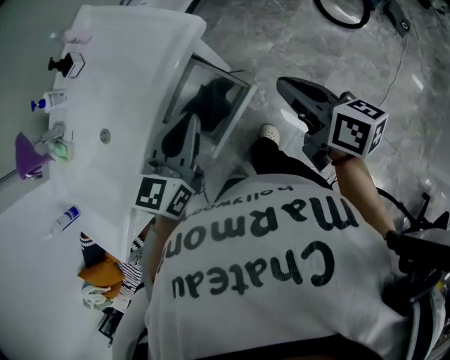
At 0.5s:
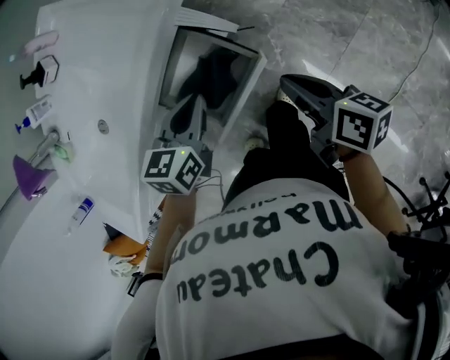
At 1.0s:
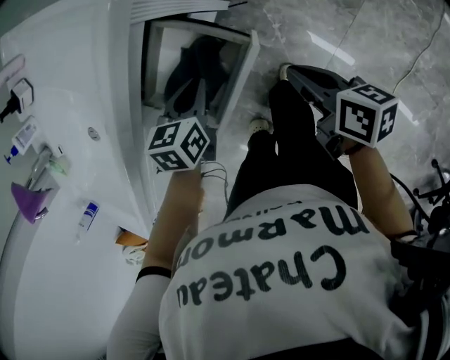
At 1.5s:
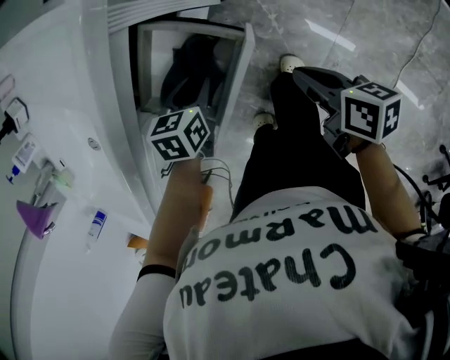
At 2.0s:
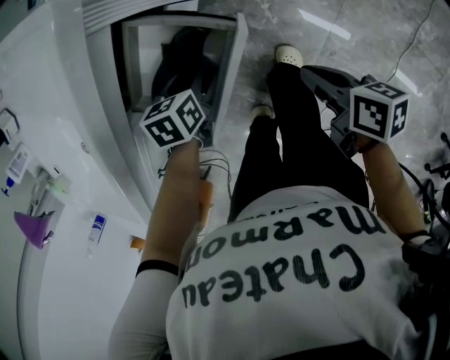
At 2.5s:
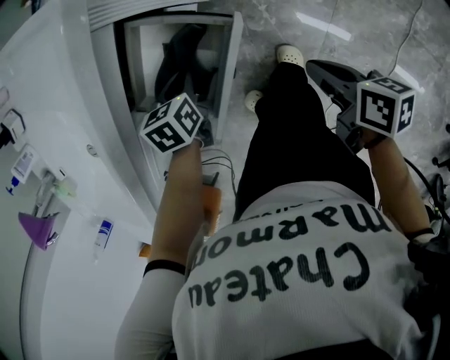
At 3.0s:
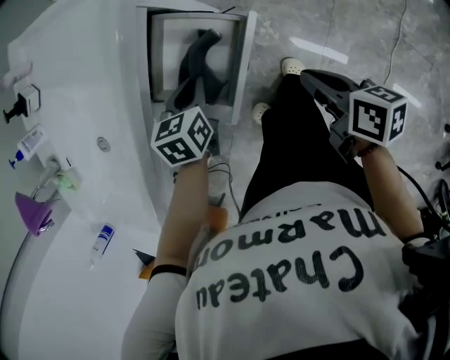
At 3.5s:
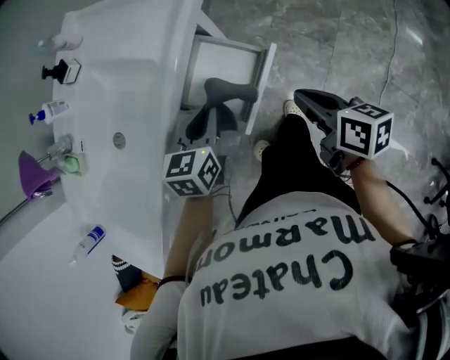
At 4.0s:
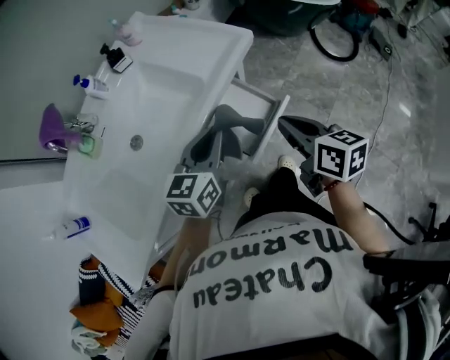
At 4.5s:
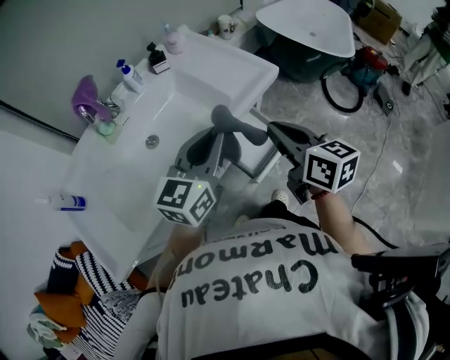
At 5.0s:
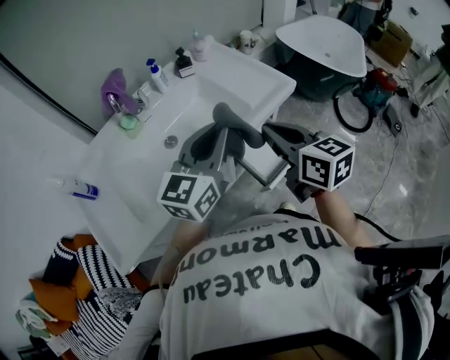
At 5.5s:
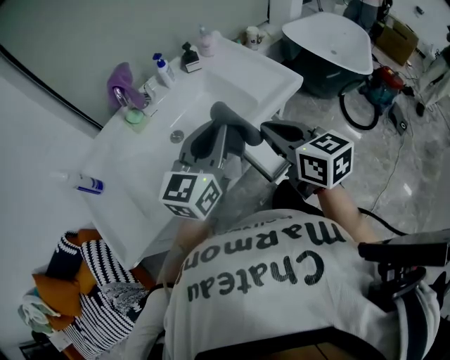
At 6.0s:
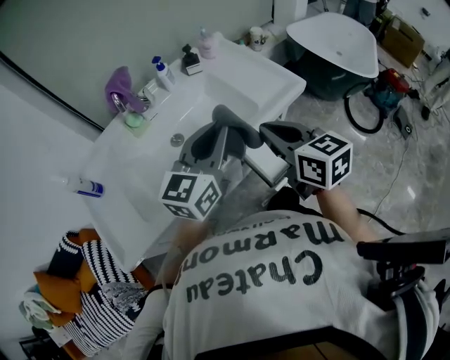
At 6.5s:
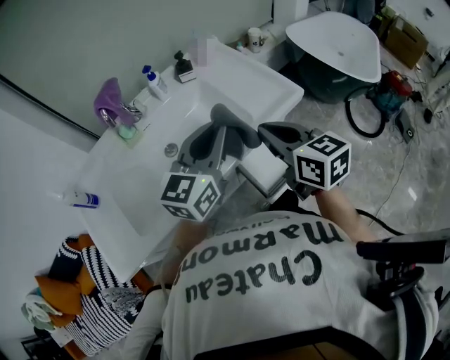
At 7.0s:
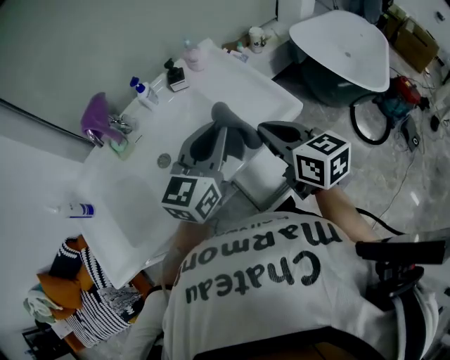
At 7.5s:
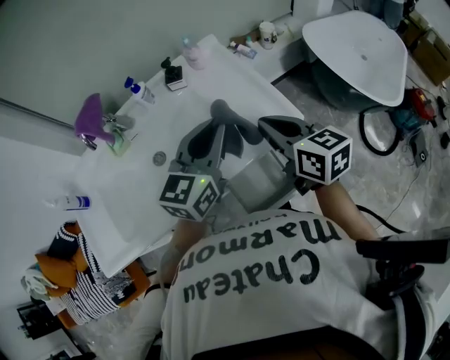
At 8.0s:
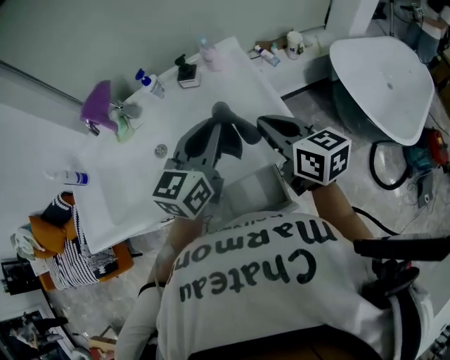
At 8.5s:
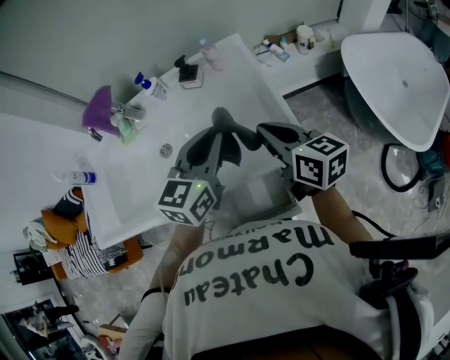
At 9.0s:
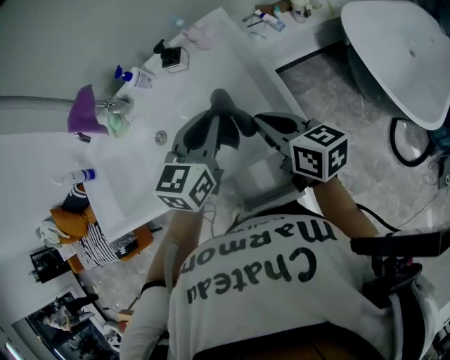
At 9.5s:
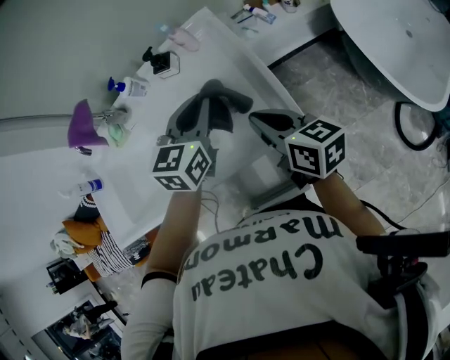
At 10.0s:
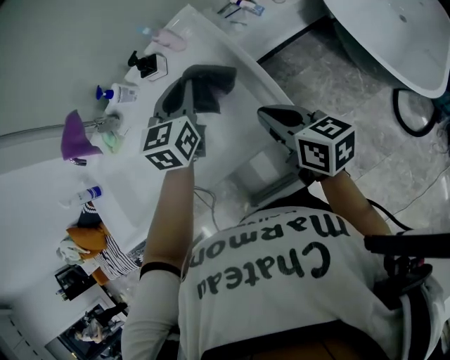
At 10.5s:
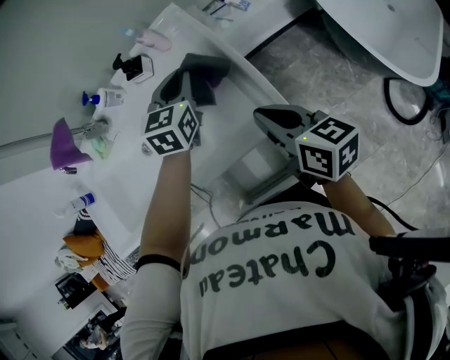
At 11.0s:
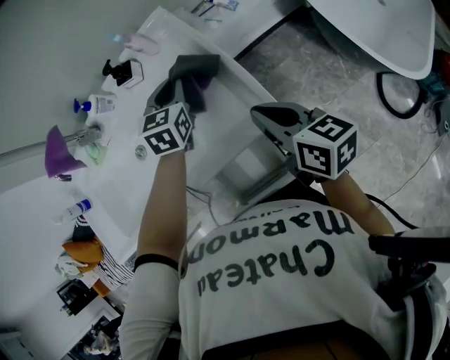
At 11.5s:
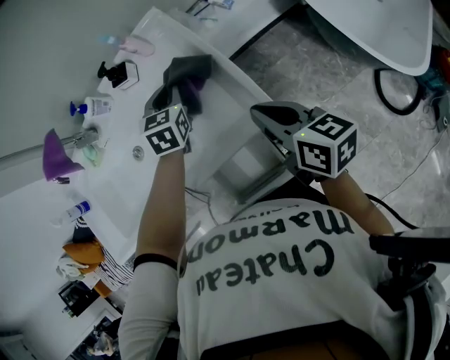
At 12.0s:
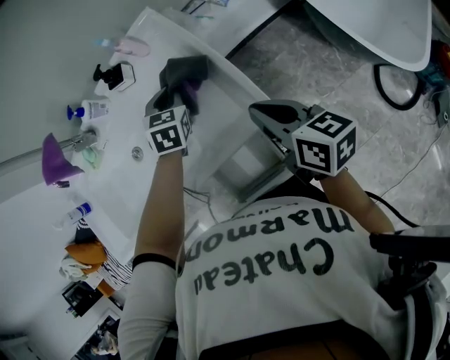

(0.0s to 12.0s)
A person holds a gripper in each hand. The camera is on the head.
0.0s - 2.0s: The two grippers go some 30 cm downward. The left gripper tips its fingers downward by roughly 50 degrees, and opens up; the right gripper turns by roughly 30 degrees.
2.0s - 4.0s: The right gripper is displaced upward and to the left by roughly 35 cm, and swivels approximately 40 degrees. The left gripper shifts roughly 35 cm upward, and angles its fingers upward, by roughly 50 degrees.
4.0s - 6.0s: The right gripper heads to the left and upward, covering approximately 20 cm, and rotates about 30 degrees. Meanwhile the left gripper is displaced upward and to the left by about 20 cm, and swivels roughly 20 degrees.
6.0s - 8.0s: Both grippers move forward and to the right, some 25 cm. The left gripper swivels some 20 degrees; the right gripper turns by about 20 degrees.
8.0s - 10.0s: The right gripper heads downward and to the right, covering about 10 cm; the left gripper goes approximately 15 cm forward, downward and to the right, and changes its angle by approximately 20 degrees.
10.0s - 12.0s: The left gripper is displaced downward by some 10 cm, and turns by some 20 degrees.

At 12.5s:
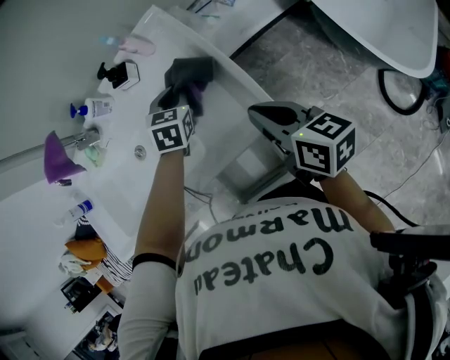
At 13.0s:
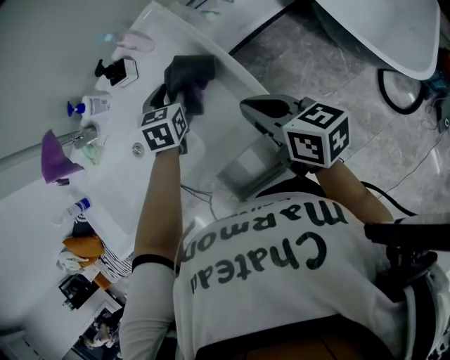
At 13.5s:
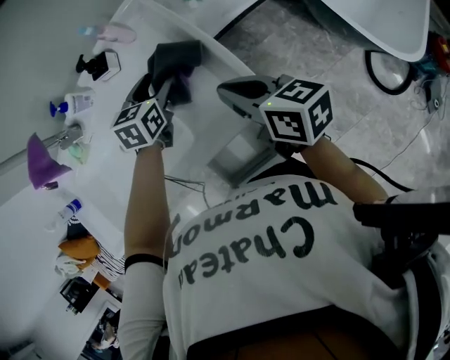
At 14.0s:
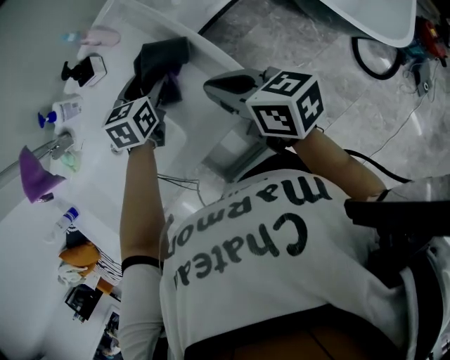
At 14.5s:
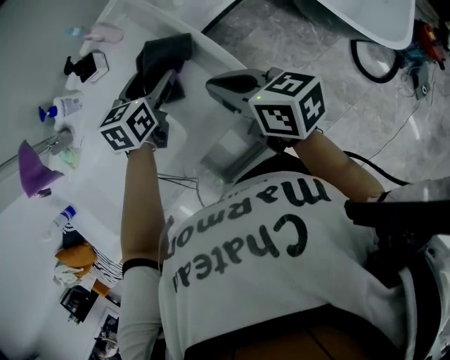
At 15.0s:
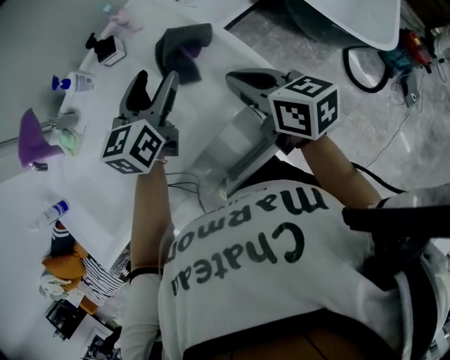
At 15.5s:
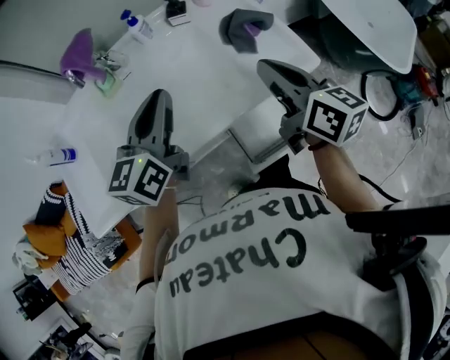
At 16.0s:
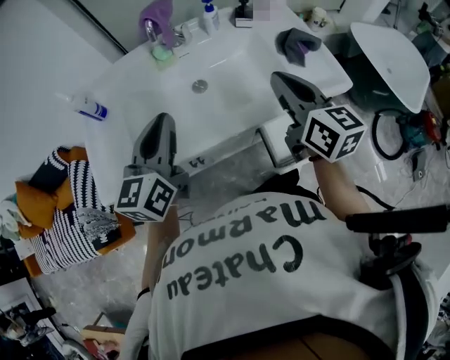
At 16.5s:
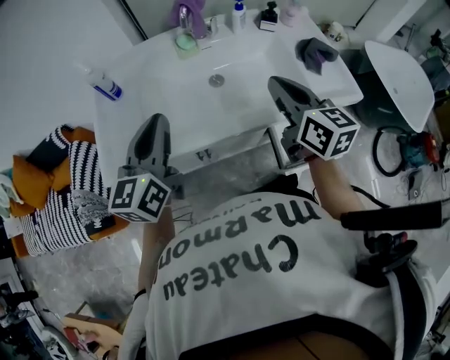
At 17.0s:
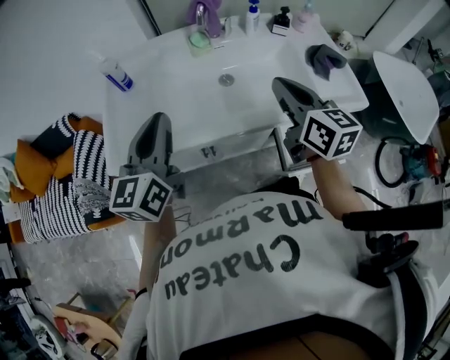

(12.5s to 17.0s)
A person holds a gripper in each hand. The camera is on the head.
12.5s - 14.5s: The left gripper swivels approximately 30 degrees, and opens up. Meanwhile the right gripper moves approximately 5 cm.
14.5s - 17.0s: The left gripper travels to the left and backward by about 60 cm, angles its fingers upward, by roughly 40 degrees, and closes its fingers, while the right gripper is displaced to the left by approximately 35 cm, and rotates about 30 degrees.

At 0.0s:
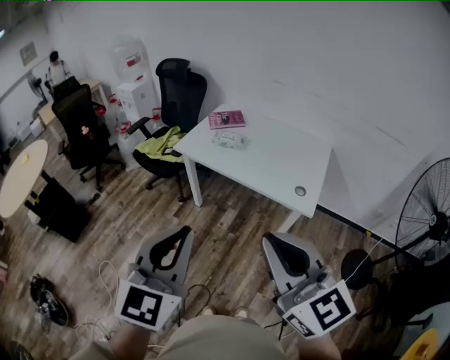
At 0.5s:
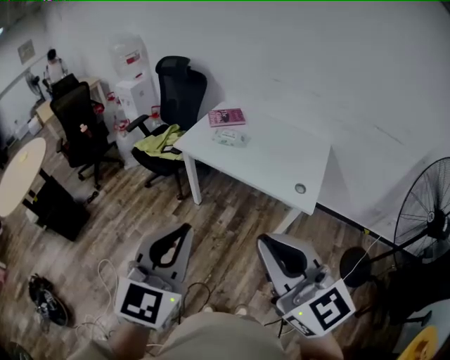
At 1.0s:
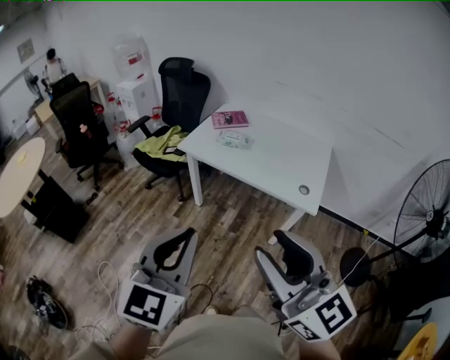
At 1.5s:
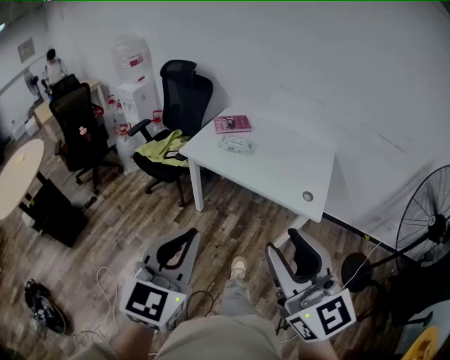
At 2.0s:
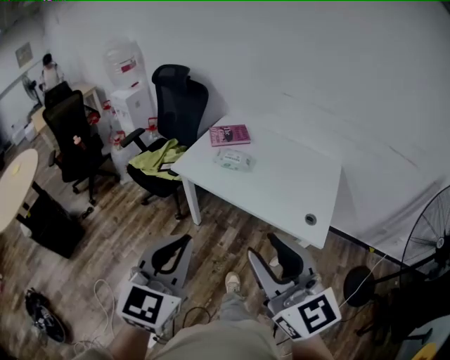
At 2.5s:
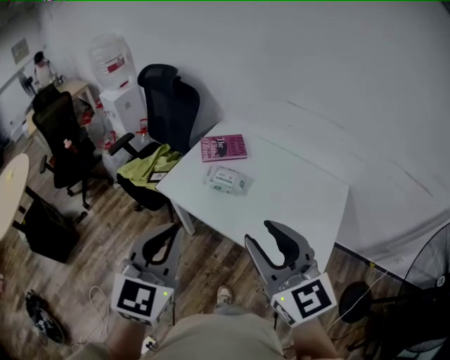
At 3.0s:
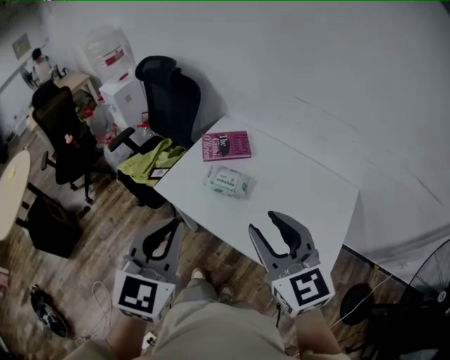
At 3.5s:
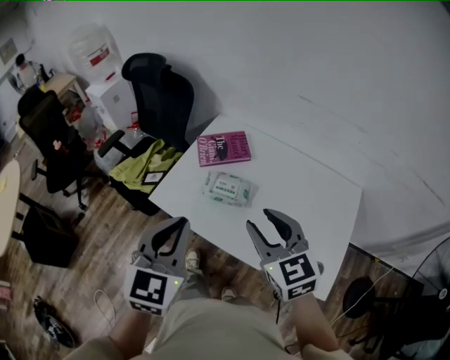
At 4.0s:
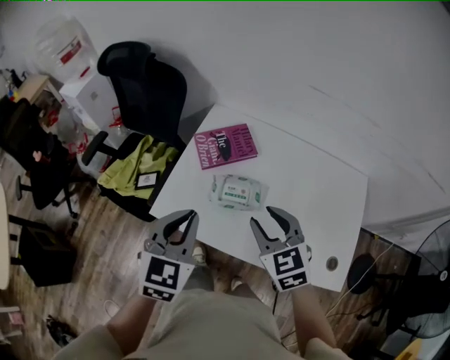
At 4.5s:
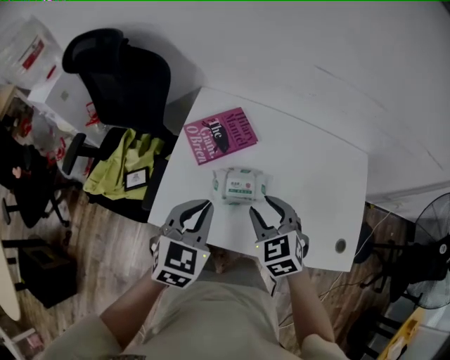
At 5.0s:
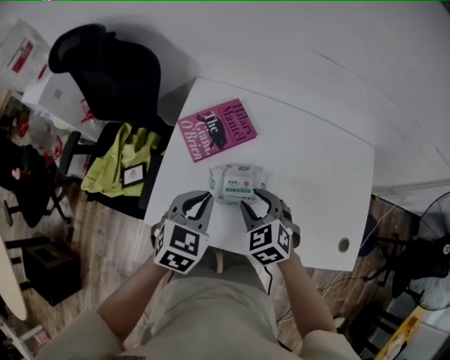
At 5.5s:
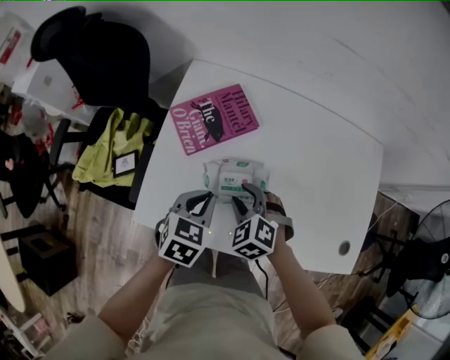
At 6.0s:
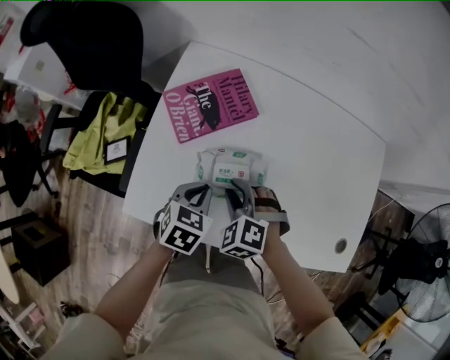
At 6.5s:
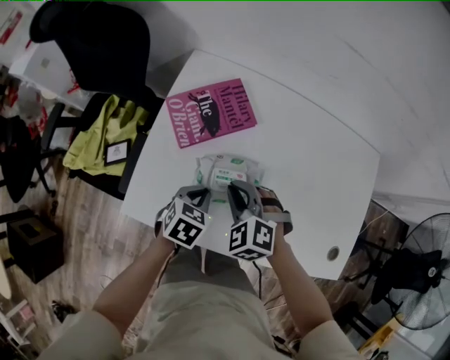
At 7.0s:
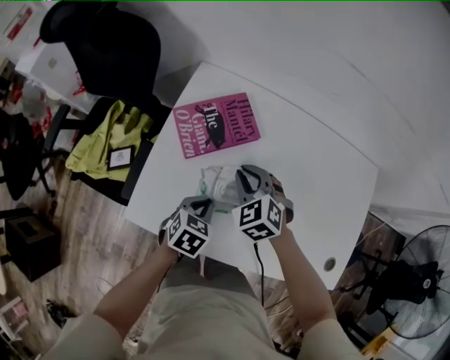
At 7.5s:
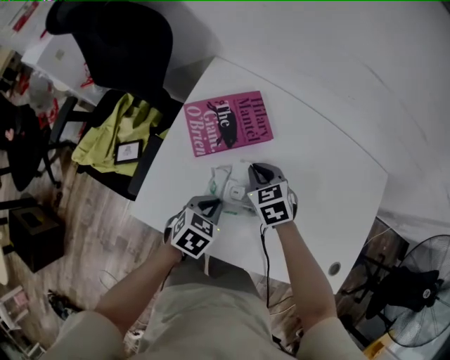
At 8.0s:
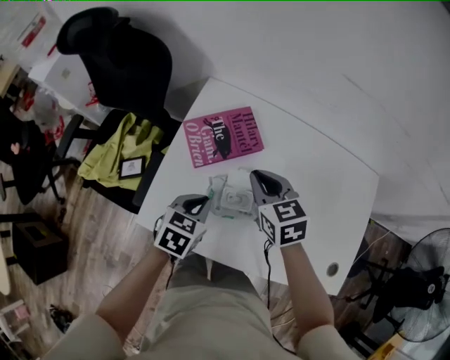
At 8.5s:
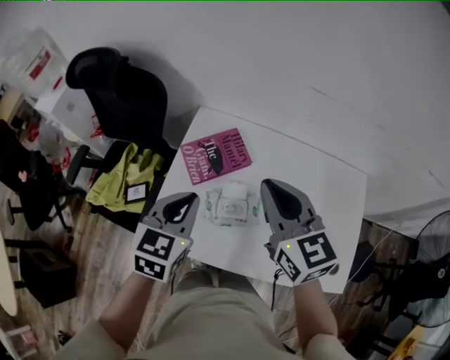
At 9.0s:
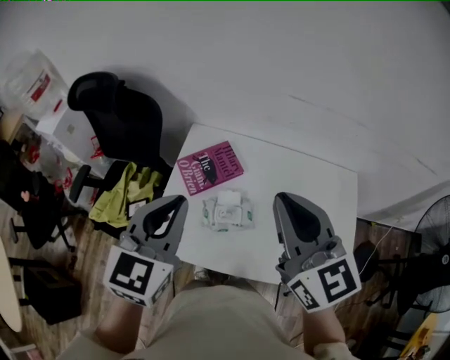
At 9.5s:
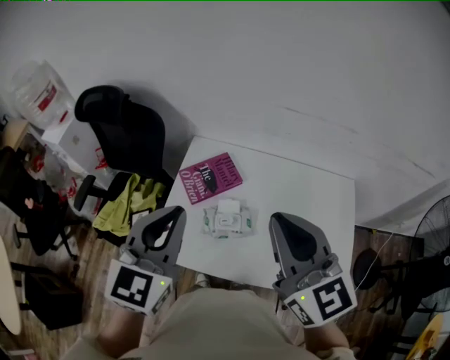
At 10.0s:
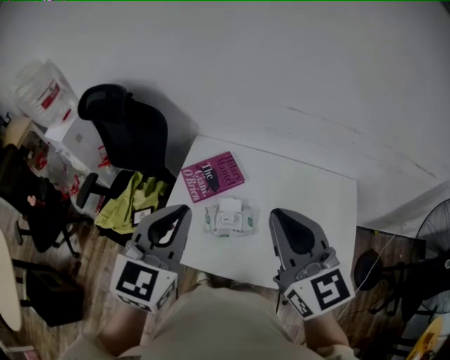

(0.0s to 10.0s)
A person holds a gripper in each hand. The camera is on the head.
0.0s - 2.0s: The two grippers go about 15 cm forward. The right gripper opens.
2.0s - 4.0s: The pair of grippers is taken forward, approximately 50 cm. The right gripper is displaced downward by some 20 cm, and angles its fingers downward, by some 30 degrees.
4.0s - 6.0s: The right gripper goes approximately 25 cm downward, and changes its angle by roughly 40 degrees, while the left gripper moves downward and forward, some 30 cm, and changes its angle by about 30 degrees.
6.0s - 8.0s: The right gripper goes up and down, approximately 15 cm each way, reversing 2 times, rolls clockwise, seen from behind, by roughly 40 degrees, and closes. Meanwhile the left gripper goes approximately 5 cm upward.
8.0s - 10.0s: The left gripper goes roughly 35 cm upward, and tilts its fingers approximately 30 degrees upward. The right gripper goes some 35 cm upward and backward, and tips its fingers upward by about 30 degrees.
